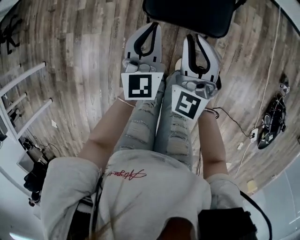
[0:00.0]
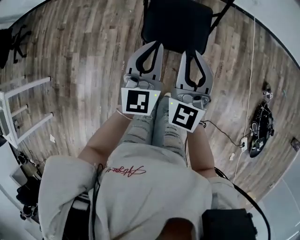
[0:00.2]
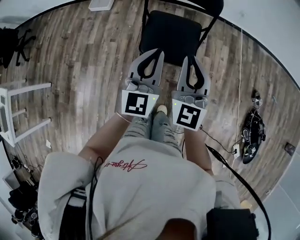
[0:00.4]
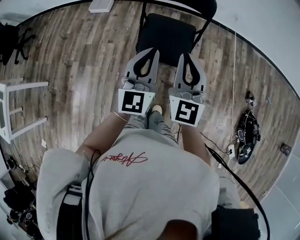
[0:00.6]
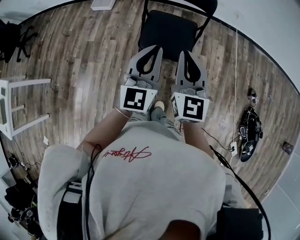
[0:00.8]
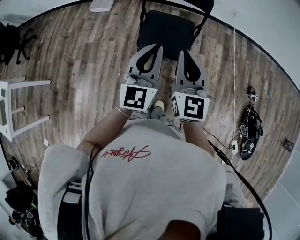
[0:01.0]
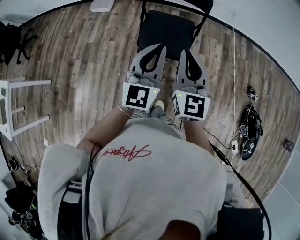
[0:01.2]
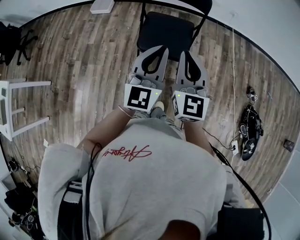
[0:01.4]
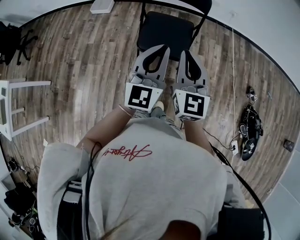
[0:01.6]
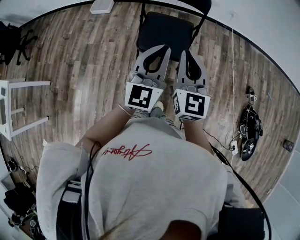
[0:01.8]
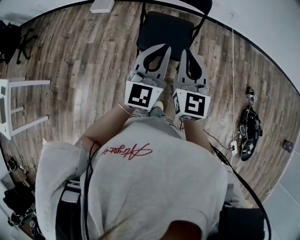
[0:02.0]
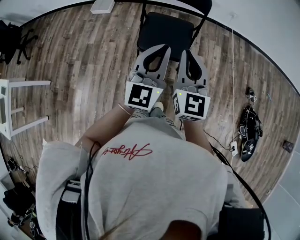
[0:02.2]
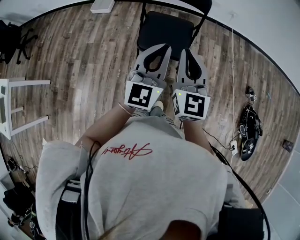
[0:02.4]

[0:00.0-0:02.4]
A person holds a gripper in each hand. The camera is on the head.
0:00.0 to 0:01.2: The two grippers go some 25 cm upward. The right gripper swivels some 30 degrees.
0:01.2 to 0:02.4: The grippers stay close to where they were, moving slightly.

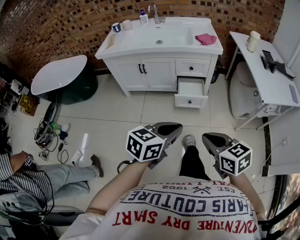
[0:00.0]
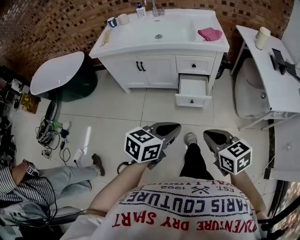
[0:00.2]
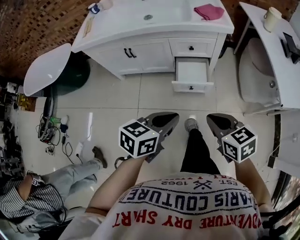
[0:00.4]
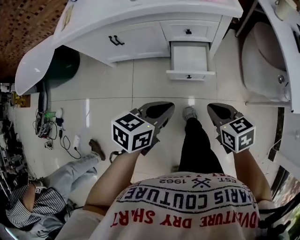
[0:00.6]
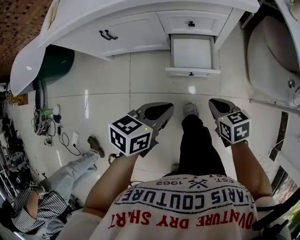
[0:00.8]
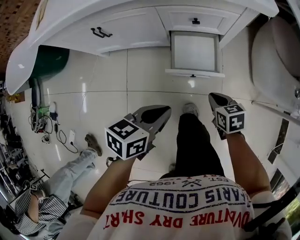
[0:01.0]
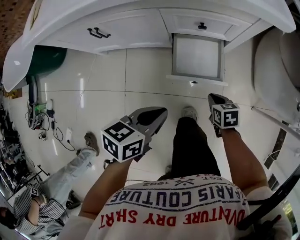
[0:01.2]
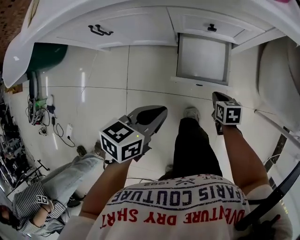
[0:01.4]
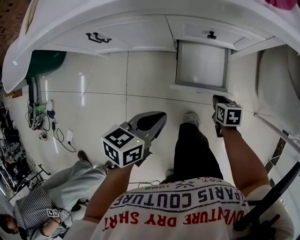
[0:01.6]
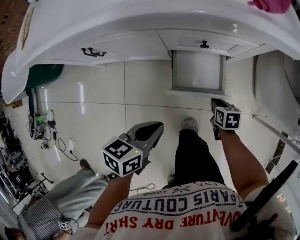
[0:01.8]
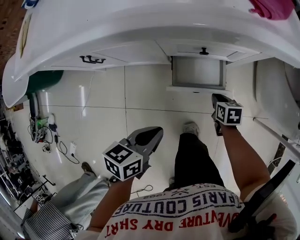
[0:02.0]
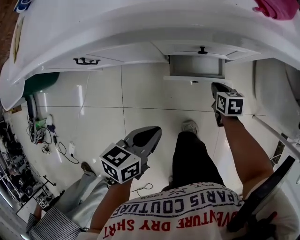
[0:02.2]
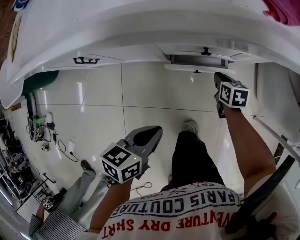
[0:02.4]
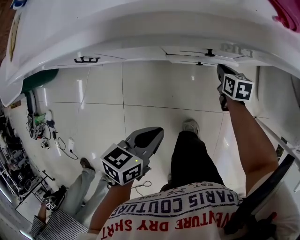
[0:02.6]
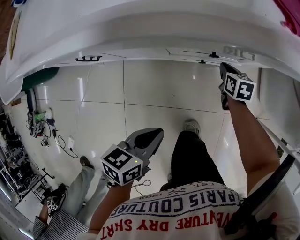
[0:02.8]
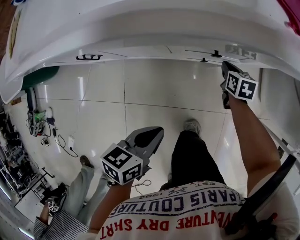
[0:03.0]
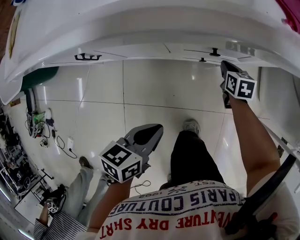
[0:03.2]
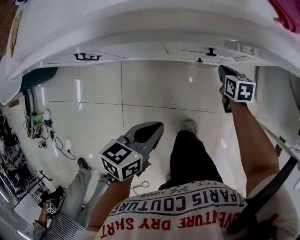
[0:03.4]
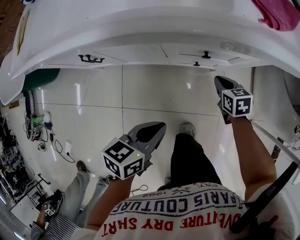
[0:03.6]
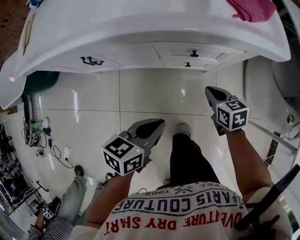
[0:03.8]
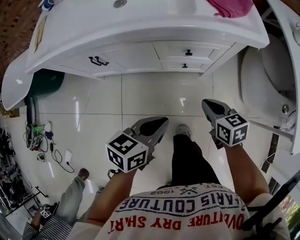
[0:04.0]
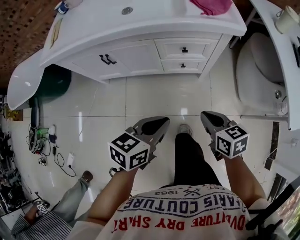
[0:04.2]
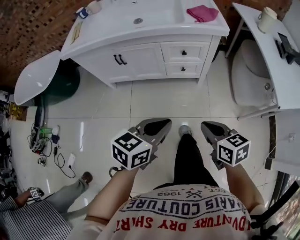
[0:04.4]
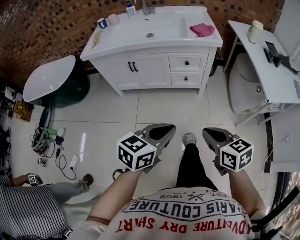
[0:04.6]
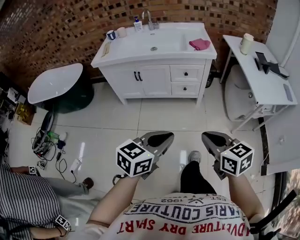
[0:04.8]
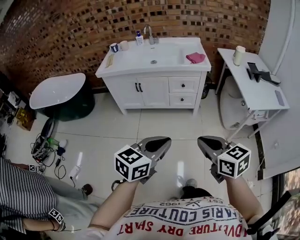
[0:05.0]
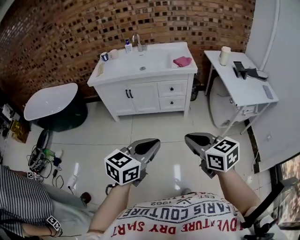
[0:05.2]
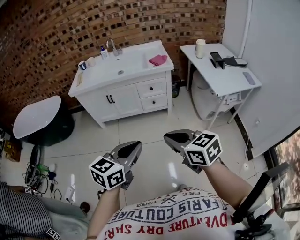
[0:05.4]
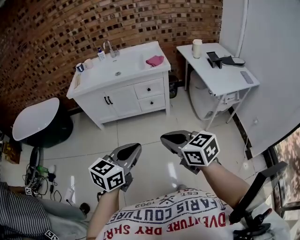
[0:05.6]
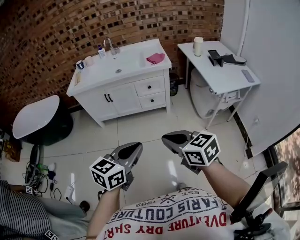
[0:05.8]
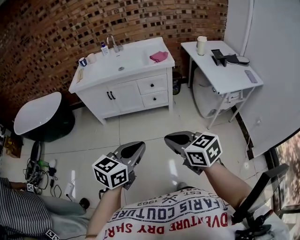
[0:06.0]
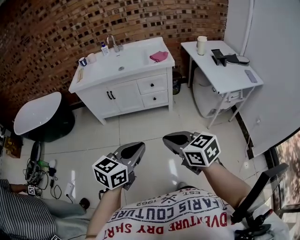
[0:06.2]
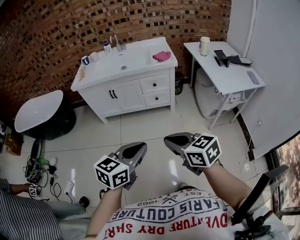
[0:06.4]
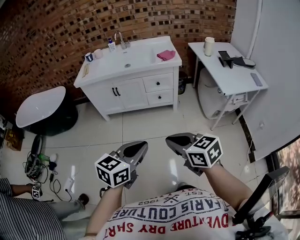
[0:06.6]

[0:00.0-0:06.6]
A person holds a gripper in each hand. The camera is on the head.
0:00.0 to 0:01.6: The pair of grippers is taken forward, approximately 40 cm. The right gripper is displaced downward by approximately 50 cm, and tips its fingers downward by about 30 degrees. The left gripper moves downward, some 30 cm, and turns by roughly 30 degrees.
0:01.6 to 0:03.2: The left gripper changes place by approximately 5 cm. The right gripper goes about 20 cm forward.
0:03.2 to 0:05.0: The two grippers travel together, backward, approximately 60 cm. Both grippers travel together upward, about 50 cm. The right gripper points its fingers some 30 degrees further upward. Meanwhile the left gripper changes its angle by approximately 40 degrees.
0:05.0 to 0:06.6: The two grippers go some 5 cm backward.

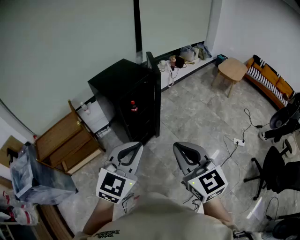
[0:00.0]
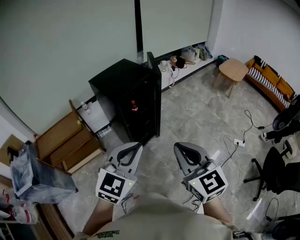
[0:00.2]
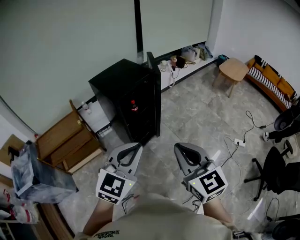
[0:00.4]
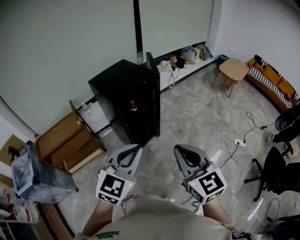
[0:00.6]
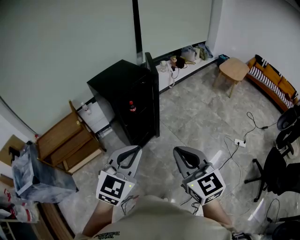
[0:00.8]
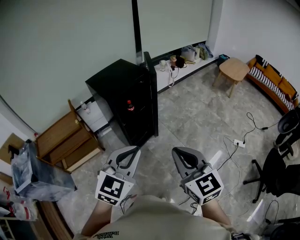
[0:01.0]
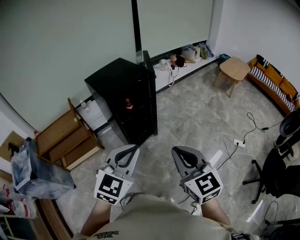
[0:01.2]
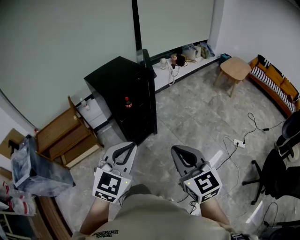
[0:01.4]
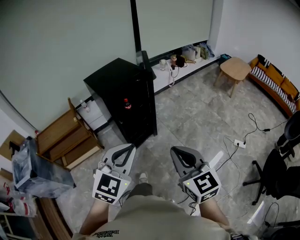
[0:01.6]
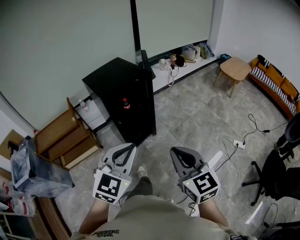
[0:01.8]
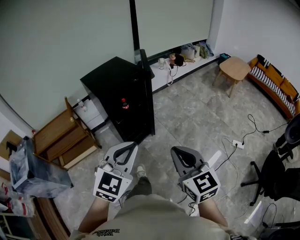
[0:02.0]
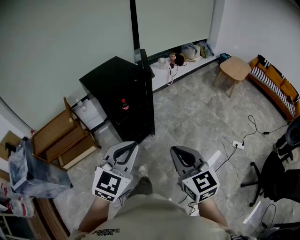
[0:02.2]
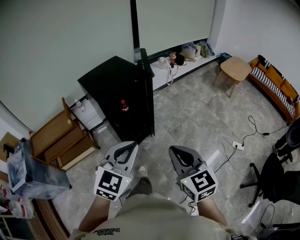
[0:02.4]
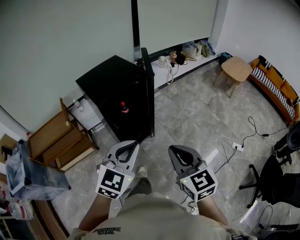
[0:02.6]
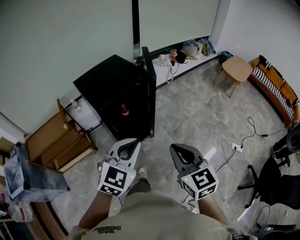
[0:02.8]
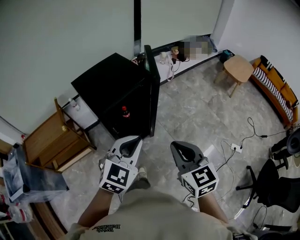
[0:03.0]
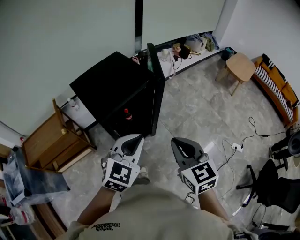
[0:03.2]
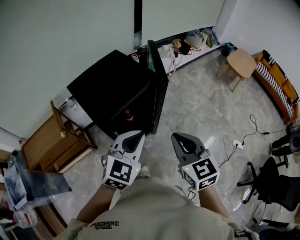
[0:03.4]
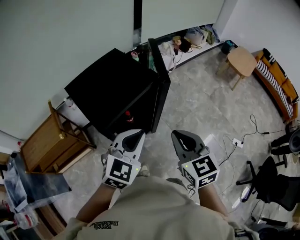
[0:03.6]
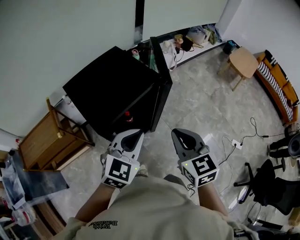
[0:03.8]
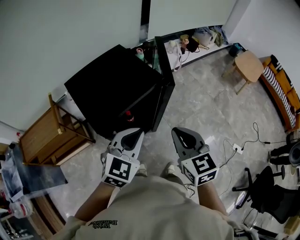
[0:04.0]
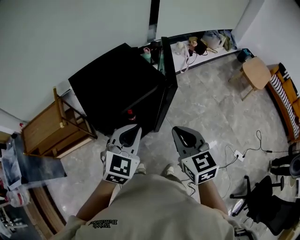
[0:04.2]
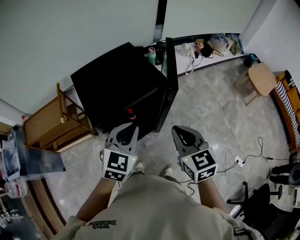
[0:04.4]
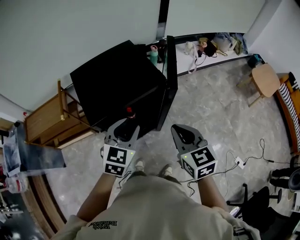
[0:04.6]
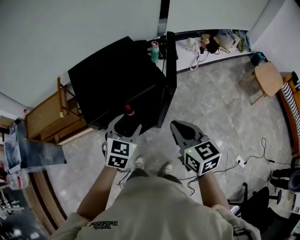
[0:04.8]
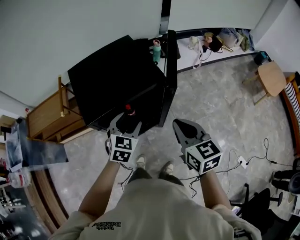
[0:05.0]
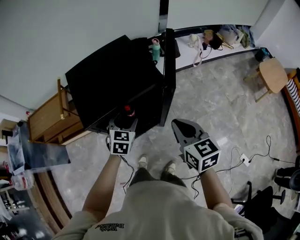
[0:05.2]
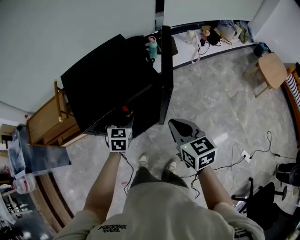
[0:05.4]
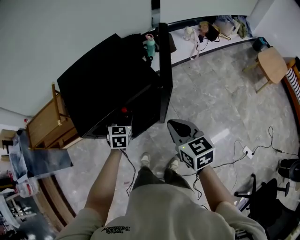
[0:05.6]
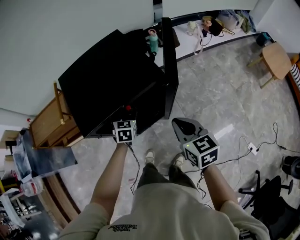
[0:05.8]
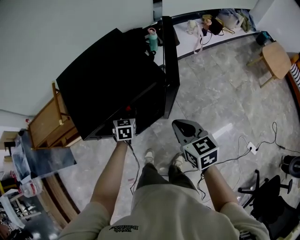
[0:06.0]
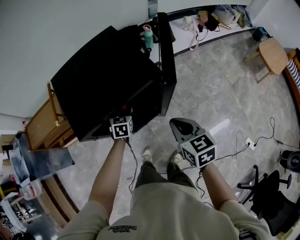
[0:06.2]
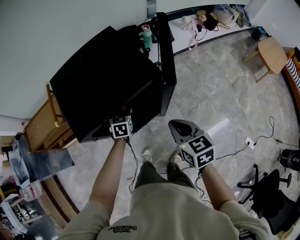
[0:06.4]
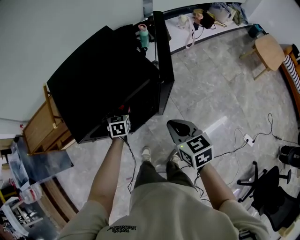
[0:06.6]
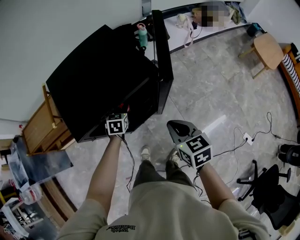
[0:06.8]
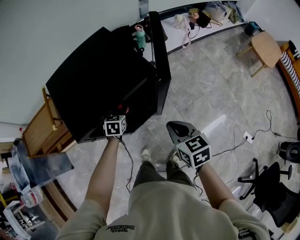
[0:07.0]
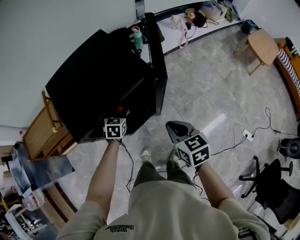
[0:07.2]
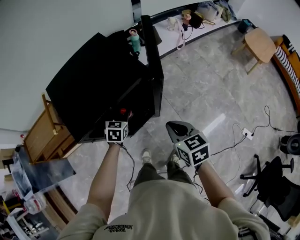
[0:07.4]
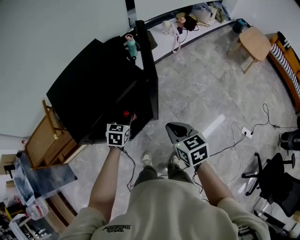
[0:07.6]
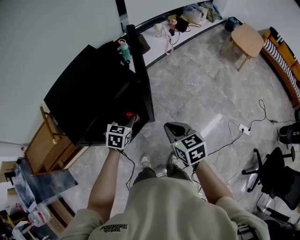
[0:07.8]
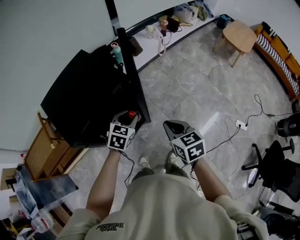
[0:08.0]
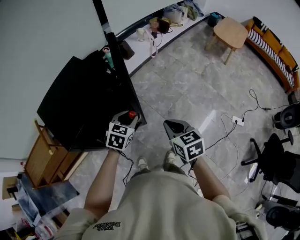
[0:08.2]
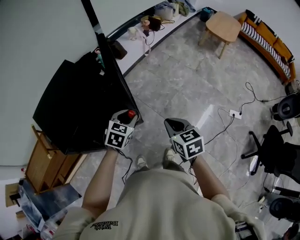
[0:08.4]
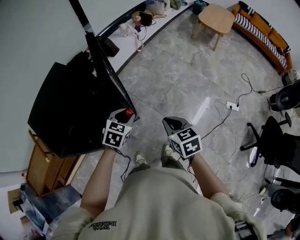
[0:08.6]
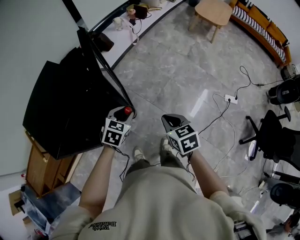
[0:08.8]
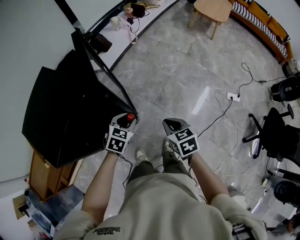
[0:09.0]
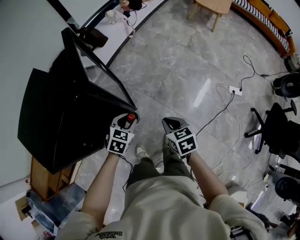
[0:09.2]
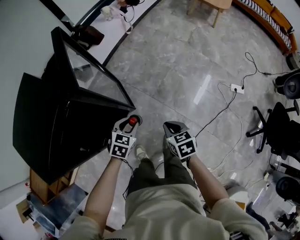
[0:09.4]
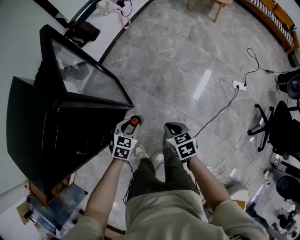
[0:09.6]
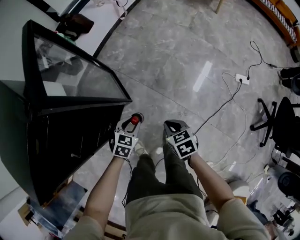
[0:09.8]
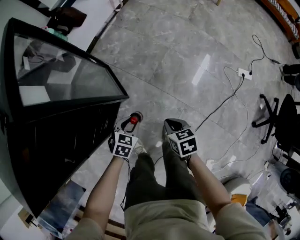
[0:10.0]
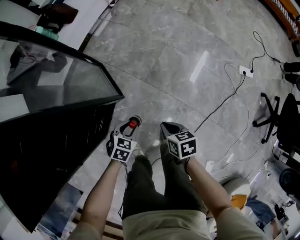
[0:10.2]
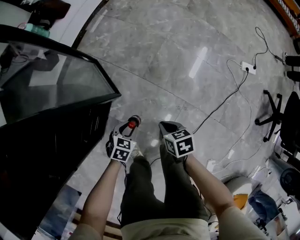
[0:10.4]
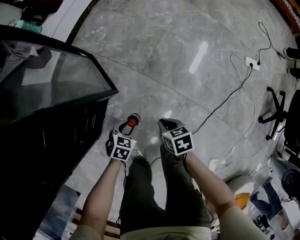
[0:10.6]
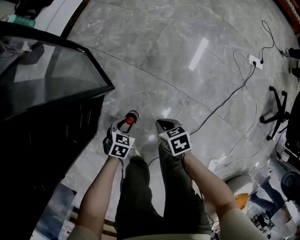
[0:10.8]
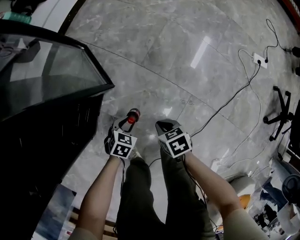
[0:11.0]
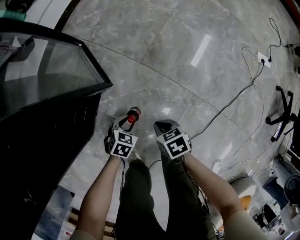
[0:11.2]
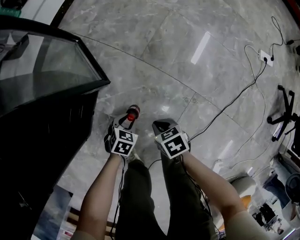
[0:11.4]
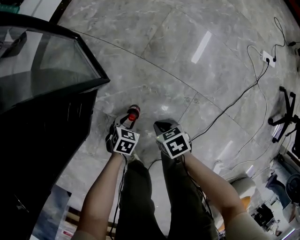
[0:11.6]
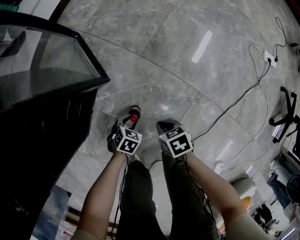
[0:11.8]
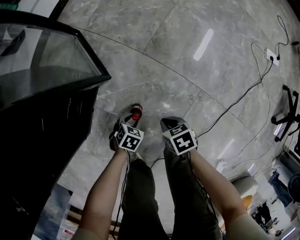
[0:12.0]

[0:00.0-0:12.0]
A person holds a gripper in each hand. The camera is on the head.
0:00.0 to 0:01.6: Both grippers move to the right, approximately 10 cm.
0:01.6 to 0:03.0: The two grippers go about 25 cm forward.
0:03.0 to 0:04.4: Both grippers move forward, about 20 cm. The left gripper turns by roughly 20 degrees.
0:04.4 to 0:06.0: The left gripper goes about 30 cm downward and forward, changes its angle by about 30 degrees, and opens, while the right gripper moves downward and forward, about 15 cm.
0:06.0 to 0:07.6: The right gripper travels backward by about 5 cm, while the left gripper moves backward and to the right, roughly 10 cm, turns by approximately 20 degrees, and closes its fingers.
0:07.6 to 0:09.0: The right gripper travels to the right and downward by about 20 cm, and turns by roughly 20 degrees, while the left gripper is displaced to the right by some 20 cm, and swivels approximately 30 degrees.
0:09.0 to 0:10.4: Both grippers move downward, about 40 cm. The right gripper turns by approximately 30 degrees.
0:10.4 to 0:12.0: Both grippers travel together downward, about 30 cm.

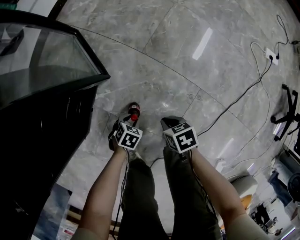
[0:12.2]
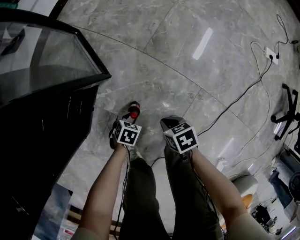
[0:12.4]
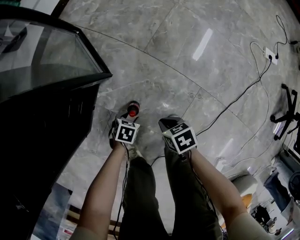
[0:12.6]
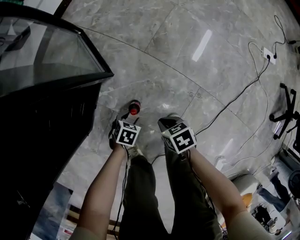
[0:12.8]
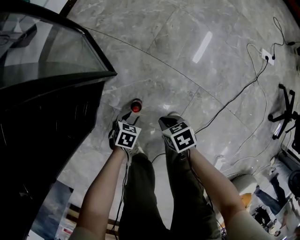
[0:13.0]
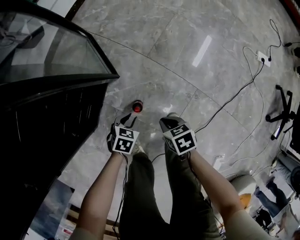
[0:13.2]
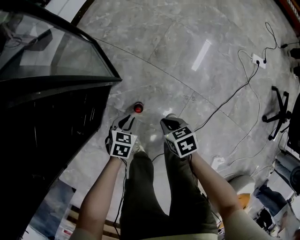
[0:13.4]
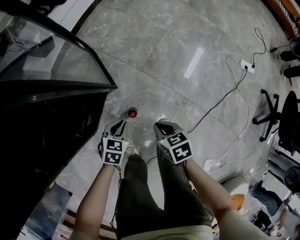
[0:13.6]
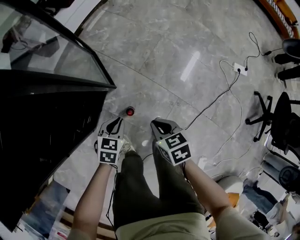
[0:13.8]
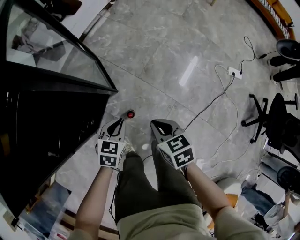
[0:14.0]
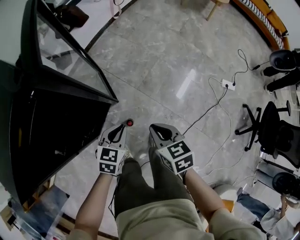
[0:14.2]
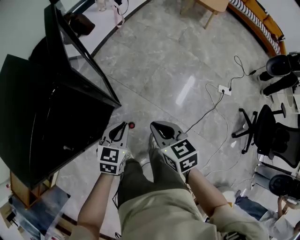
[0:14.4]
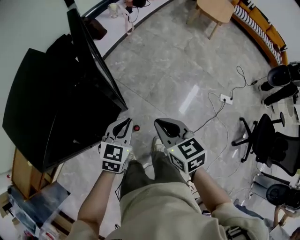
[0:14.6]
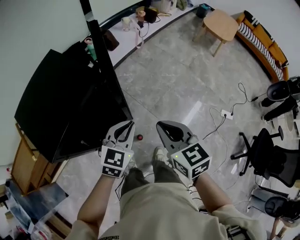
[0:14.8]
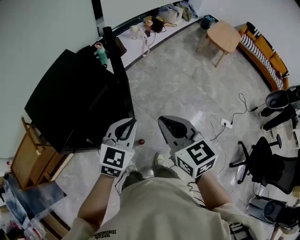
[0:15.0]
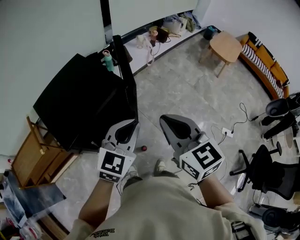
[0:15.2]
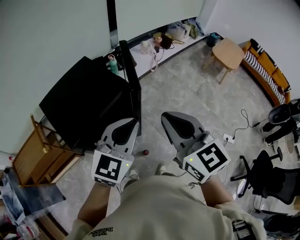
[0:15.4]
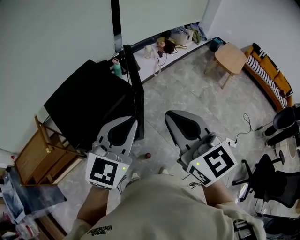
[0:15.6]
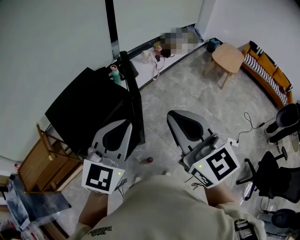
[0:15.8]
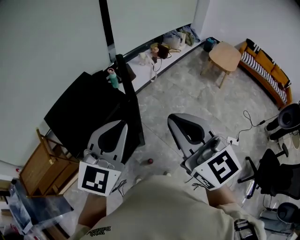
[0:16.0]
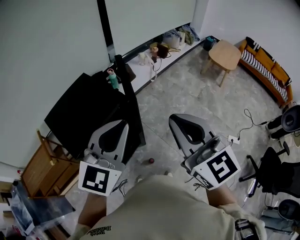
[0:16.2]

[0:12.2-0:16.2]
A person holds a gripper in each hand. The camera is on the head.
0:12.2 to 0:13.6: Both grippers move upward, roughly 30 cm. The left gripper swivels approximately 20 degrees, and closes.
0:13.6 to 0:14.8: Both grippers travel together upward, some 60 cm. The left gripper tilts its fingers approximately 30 degrees upward. Meanwhile the right gripper changes its angle by some 40 degrees.
0:14.8 to 0:16.2: The two grippers go approximately 25 cm upward. The right gripper rotates approximately 30 degrees, while the left gripper rotates approximately 30 degrees.
